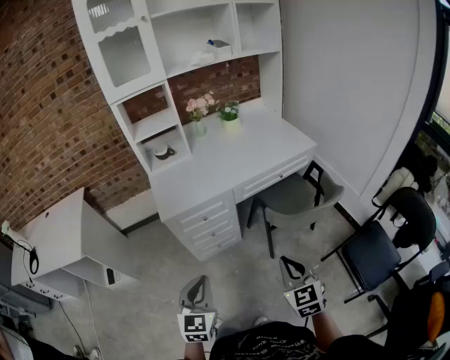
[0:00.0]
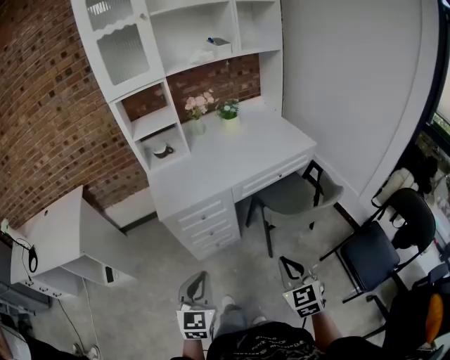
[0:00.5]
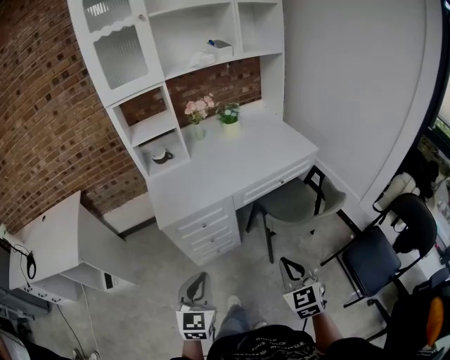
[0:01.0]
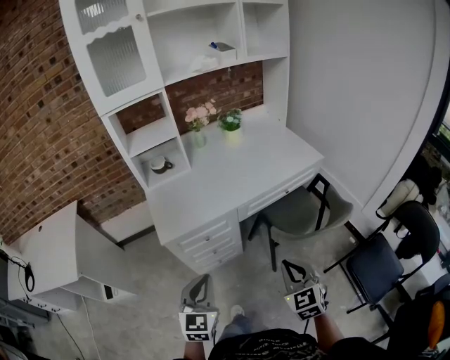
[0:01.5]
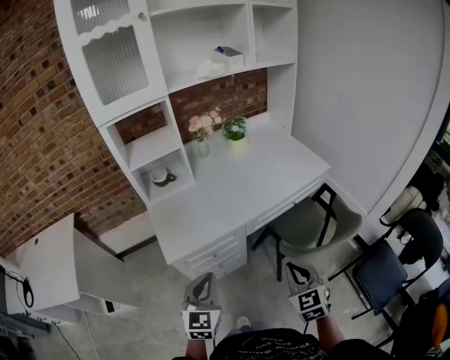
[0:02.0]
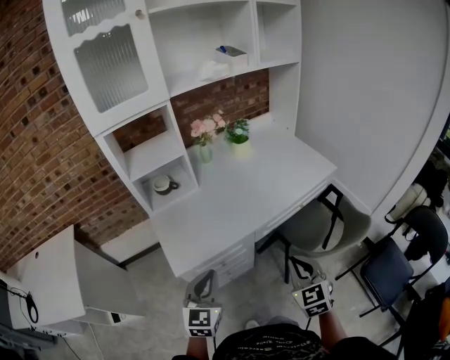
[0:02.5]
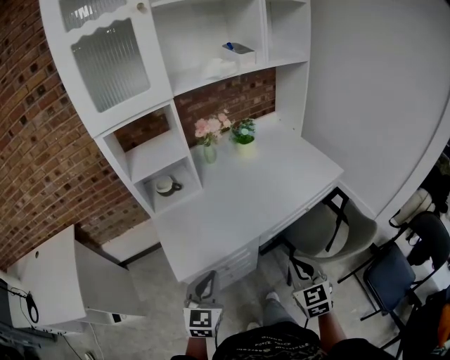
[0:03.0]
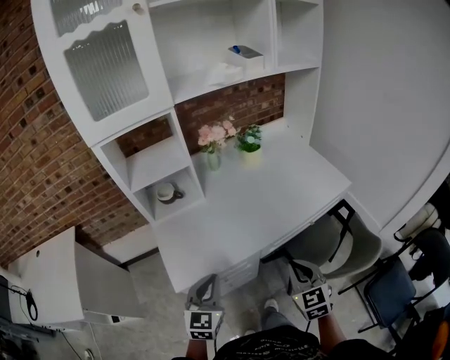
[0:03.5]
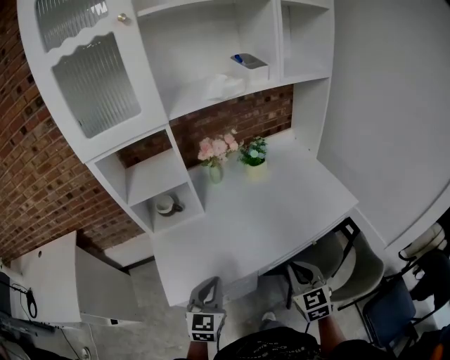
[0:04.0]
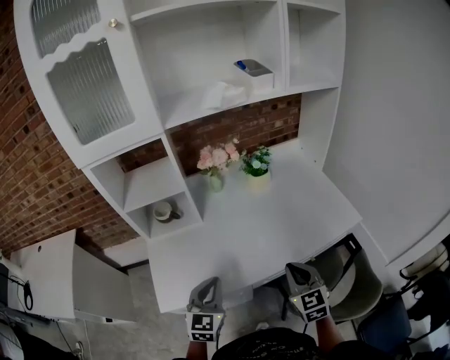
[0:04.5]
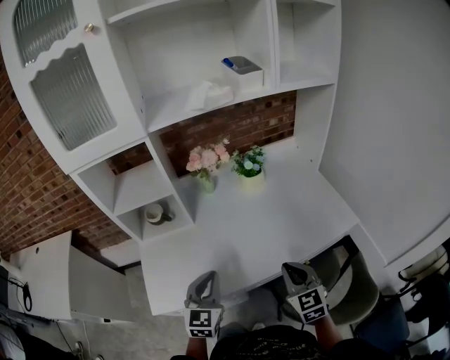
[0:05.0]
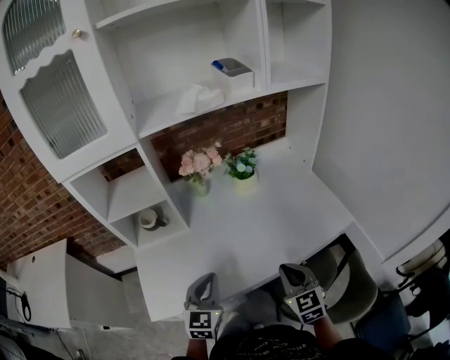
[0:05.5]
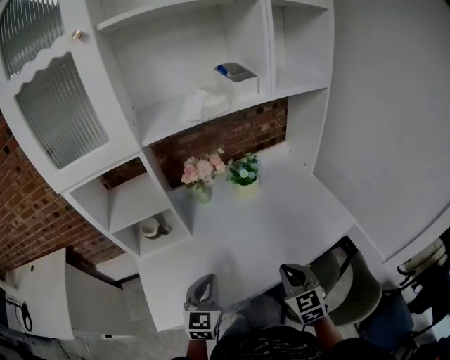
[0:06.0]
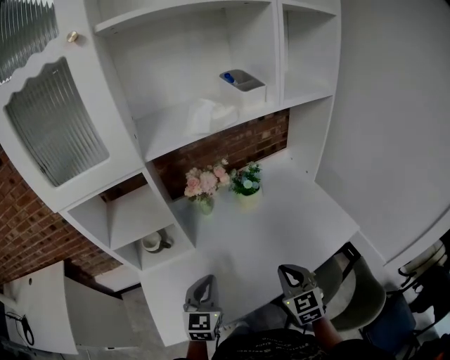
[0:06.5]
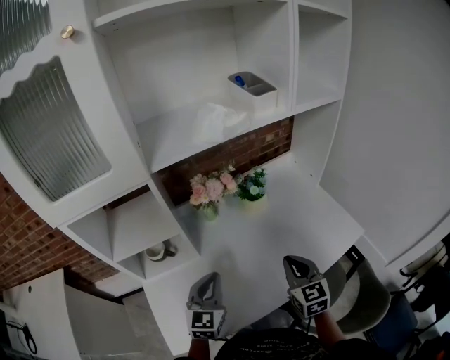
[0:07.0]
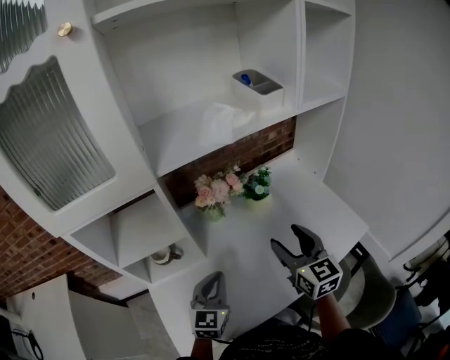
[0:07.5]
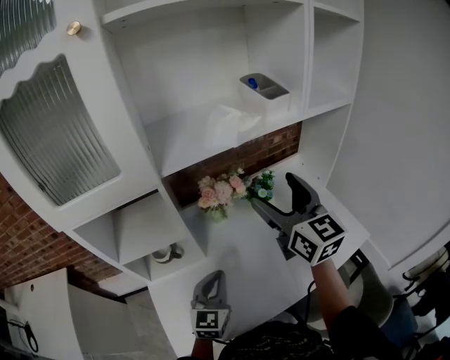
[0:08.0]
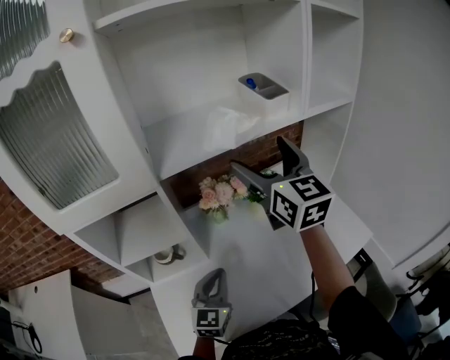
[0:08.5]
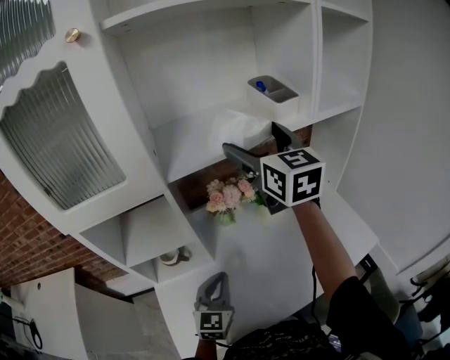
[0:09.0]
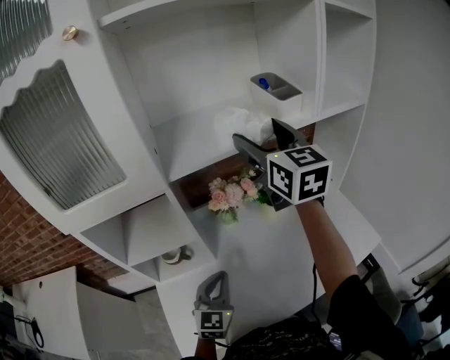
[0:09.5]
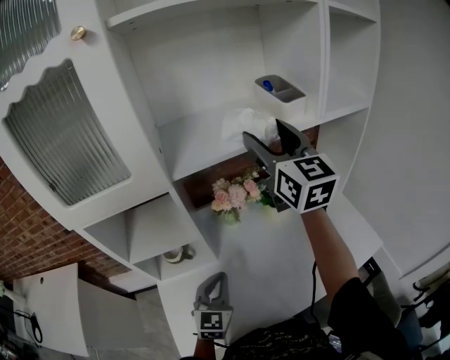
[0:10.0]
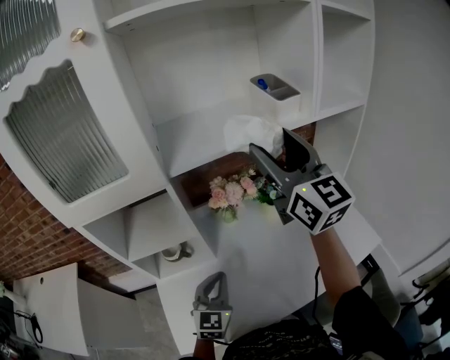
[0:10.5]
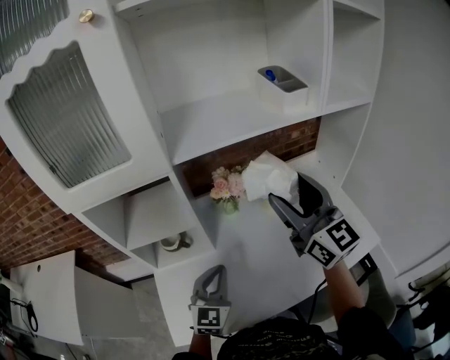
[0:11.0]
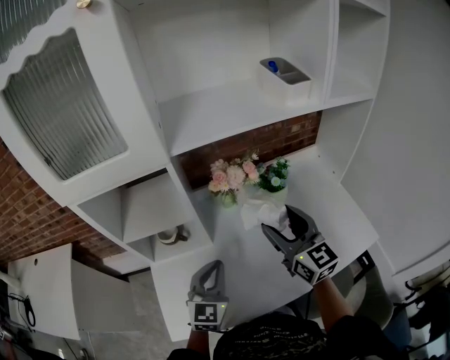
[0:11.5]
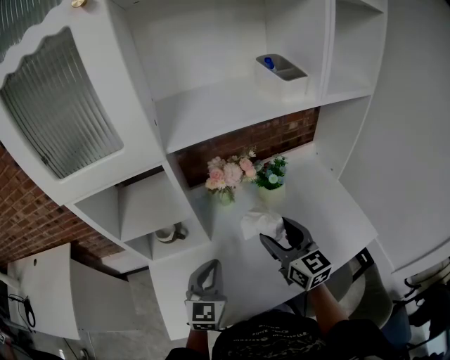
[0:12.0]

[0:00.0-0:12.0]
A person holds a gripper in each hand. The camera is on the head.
0:00.0 to 0:02.0: The two grippers go roughly 20 cm forward.
0:02.0 to 0:04.0: Both grippers travel together forward, roughly 20 cm.
0:04.0 to 0:06.0: Both grippers travel together forward, some 10 cm.
0:06.0 to 0:08.0: The left gripper travels forward by roughly 10 cm, while the right gripper is displaced upward and forward by about 35 cm, changes its angle by some 30 degrees, and opens up.
0:08.0 to 0:10.0: The right gripper heads upward and forward, covering about 15 cm.
0:10.0 to 0:12.0: The right gripper is displaced downward and backward by about 30 cm.

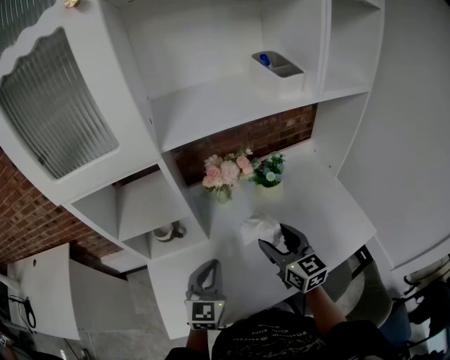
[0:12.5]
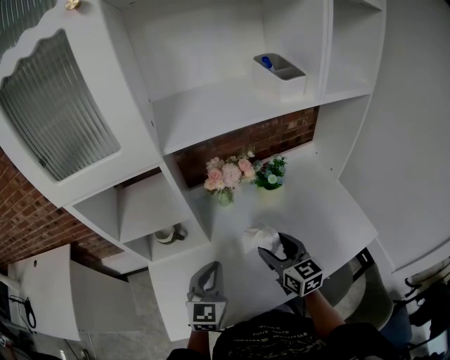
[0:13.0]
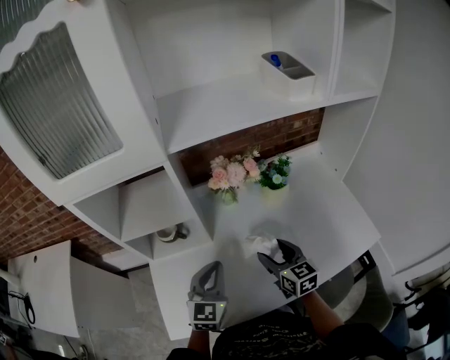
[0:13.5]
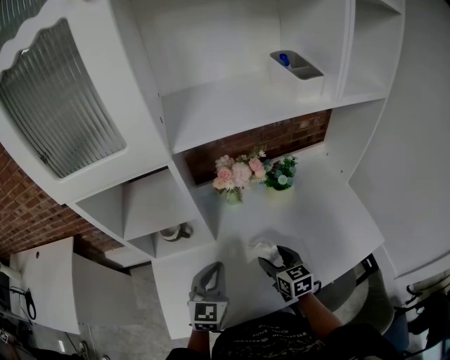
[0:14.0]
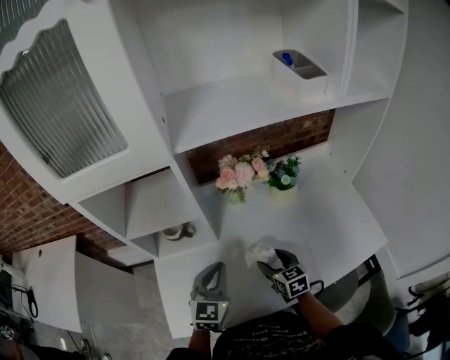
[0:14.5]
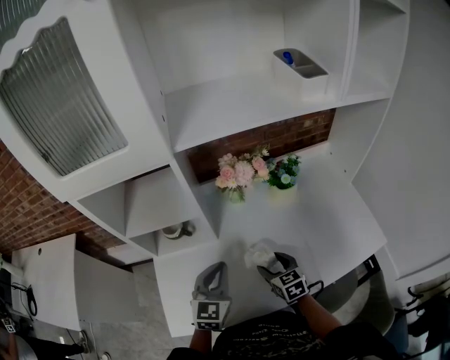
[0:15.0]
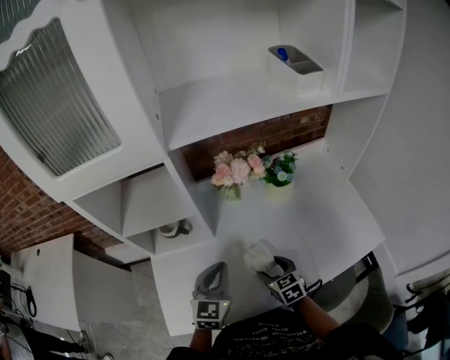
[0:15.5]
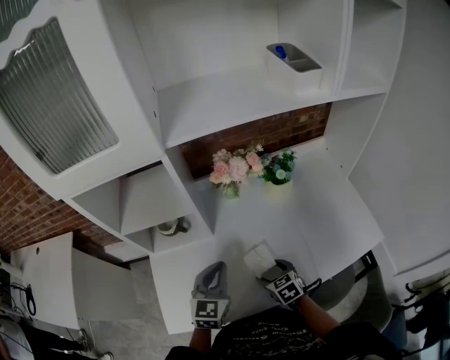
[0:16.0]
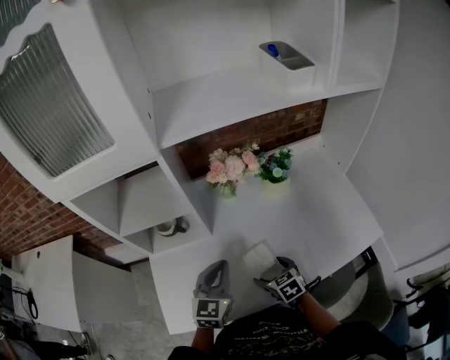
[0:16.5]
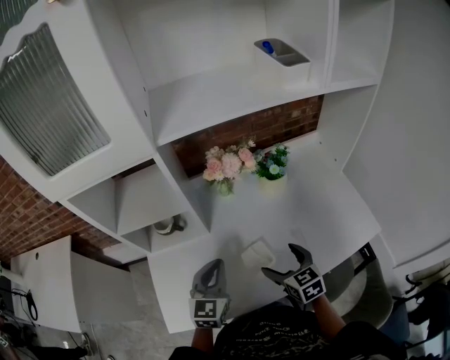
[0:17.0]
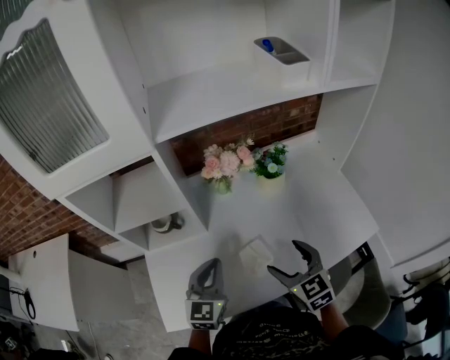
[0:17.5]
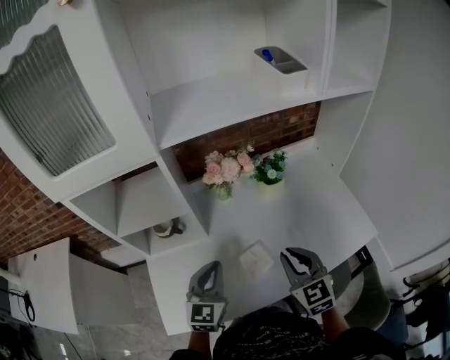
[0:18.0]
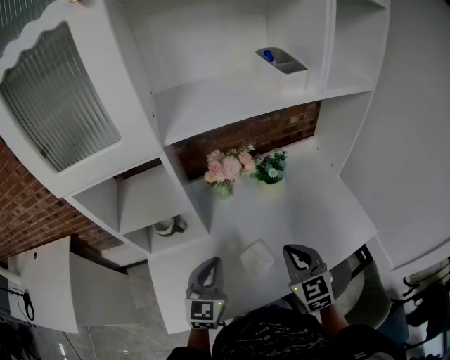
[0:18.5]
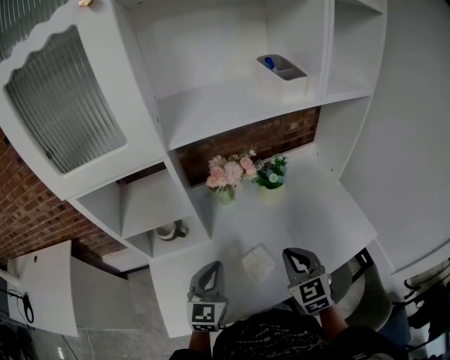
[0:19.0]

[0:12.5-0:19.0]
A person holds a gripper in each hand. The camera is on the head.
0:12.5 to 0:14.5: The right gripper is displaced downward by about 15 cm, and swivels about 20 degrees.
0:14.5 to 0:17.0: The right gripper is displaced backward by some 5 cm, and opens.
0:17.0 to 0:19.0: The right gripper moves upward, approximately 10 cm, swivels some 20 degrees, and closes.

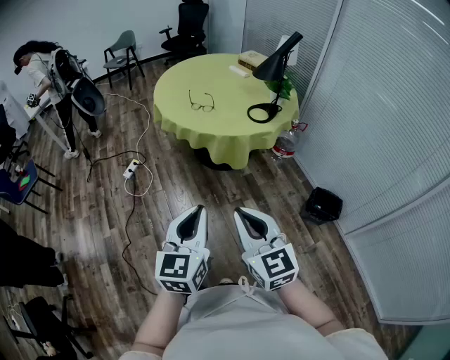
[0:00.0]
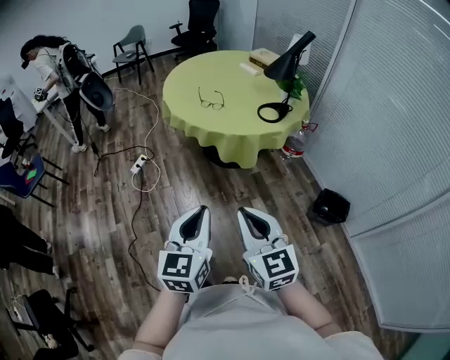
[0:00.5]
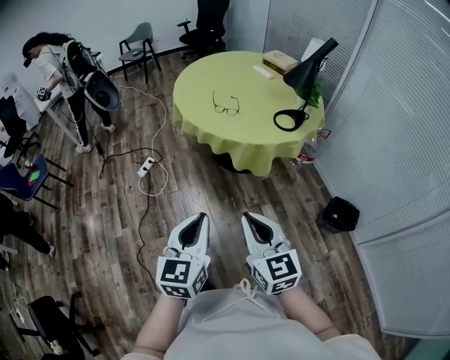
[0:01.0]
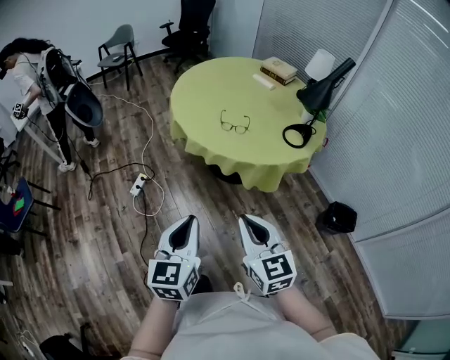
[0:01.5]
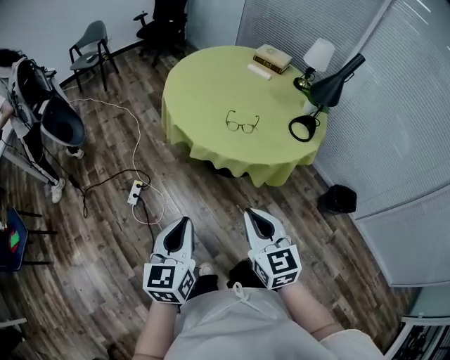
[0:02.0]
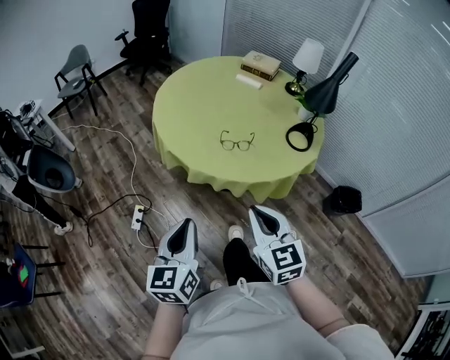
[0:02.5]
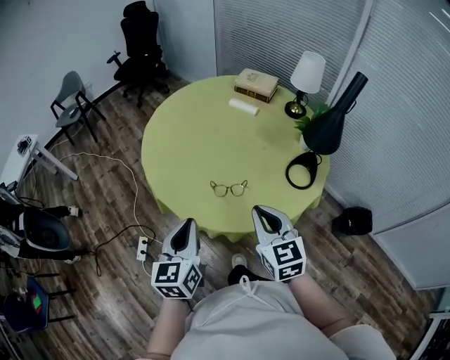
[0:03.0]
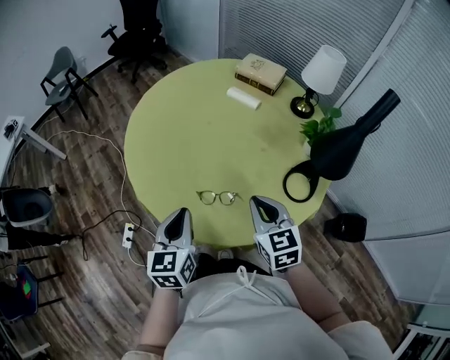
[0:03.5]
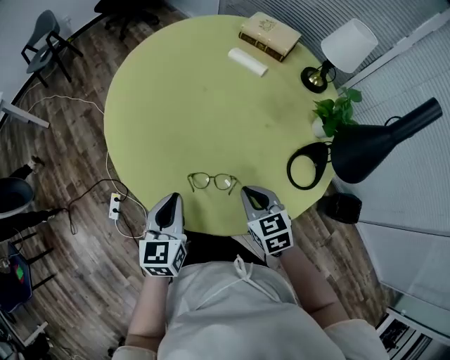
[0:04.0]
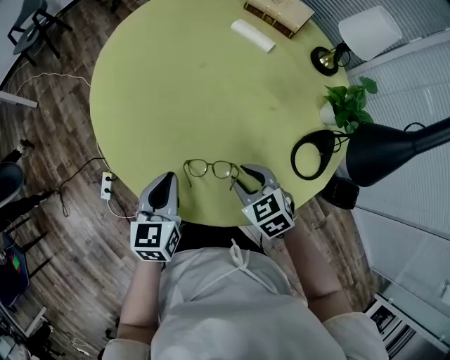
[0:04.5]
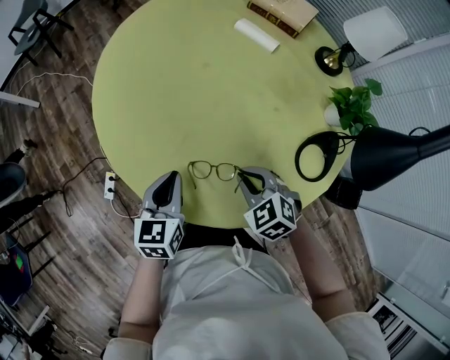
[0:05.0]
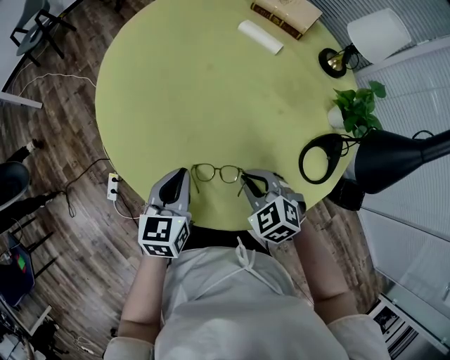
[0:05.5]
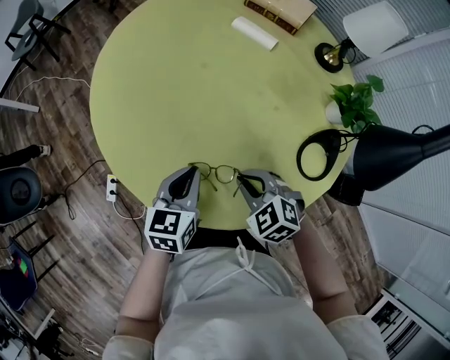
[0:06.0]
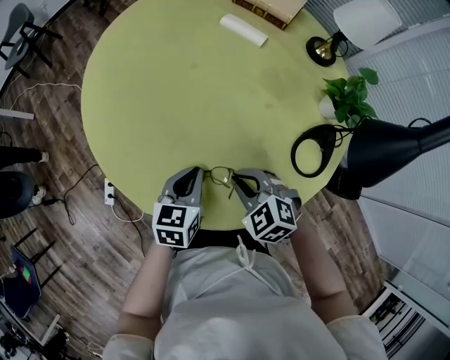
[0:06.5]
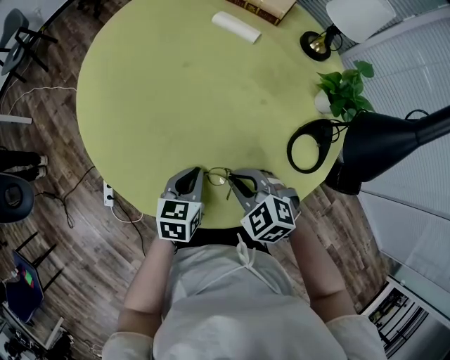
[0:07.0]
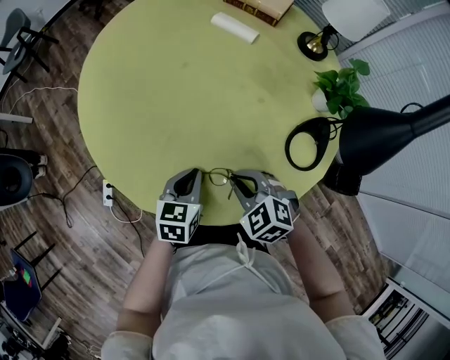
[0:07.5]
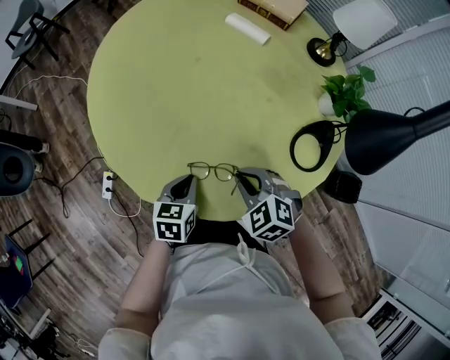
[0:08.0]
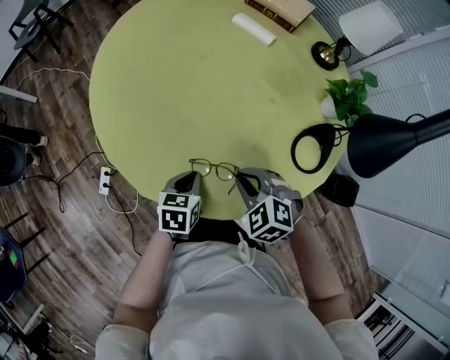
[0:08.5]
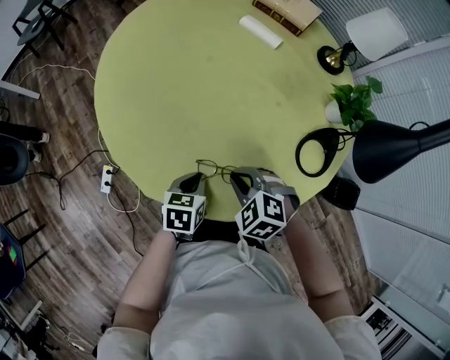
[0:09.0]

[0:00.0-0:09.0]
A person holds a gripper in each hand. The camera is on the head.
0:00.0 to 0:02.0: The two grippers travel together, to the left and forward, roughly 50 cm. The right gripper rotates about 20 degrees.
0:02.0 to 0:04.5: The pair of grippers is taken forward, about 50 cm. The right gripper travels downward by some 25 cm, tilts its fingers roughly 30 degrees downward, and opens.
0:04.5 to 0:07.0: The left gripper travels to the right and downward by approximately 10 cm, and swivels roughly 20 degrees. The right gripper closes.
0:07.0 to 0:09.0: The left gripper changes place by approximately 5 cm.
